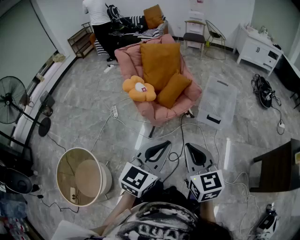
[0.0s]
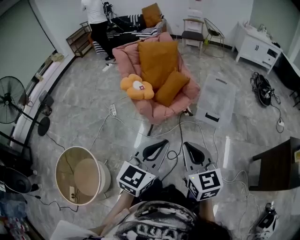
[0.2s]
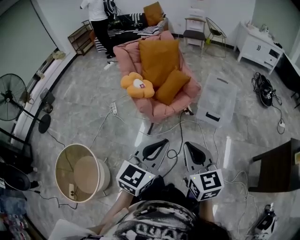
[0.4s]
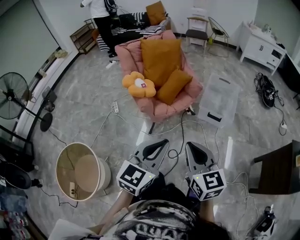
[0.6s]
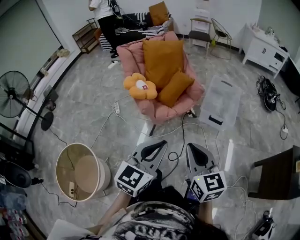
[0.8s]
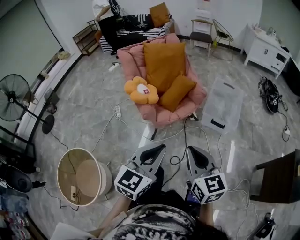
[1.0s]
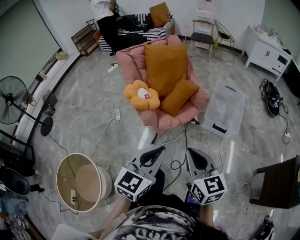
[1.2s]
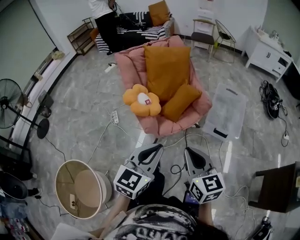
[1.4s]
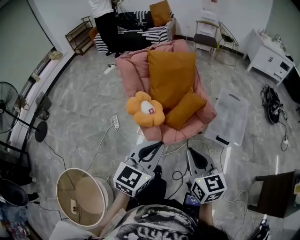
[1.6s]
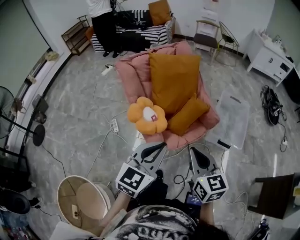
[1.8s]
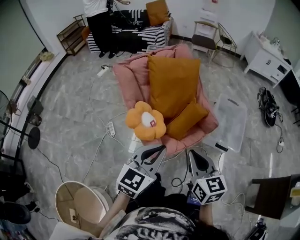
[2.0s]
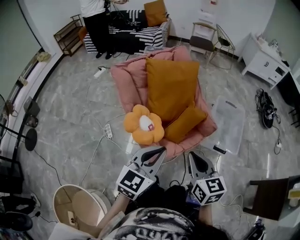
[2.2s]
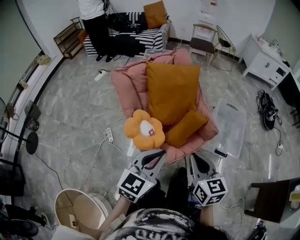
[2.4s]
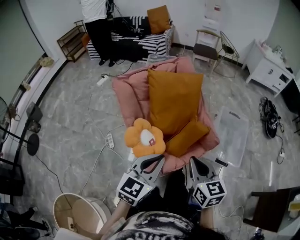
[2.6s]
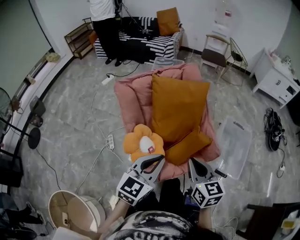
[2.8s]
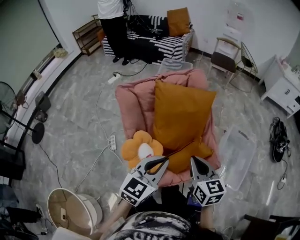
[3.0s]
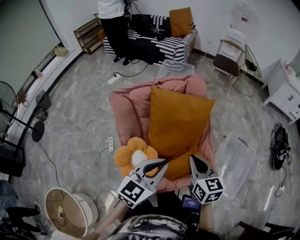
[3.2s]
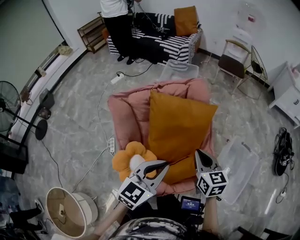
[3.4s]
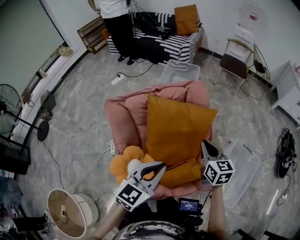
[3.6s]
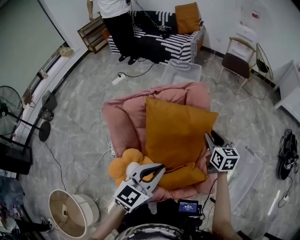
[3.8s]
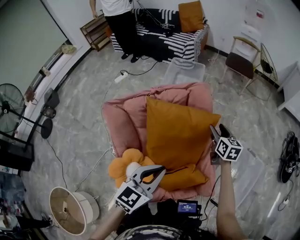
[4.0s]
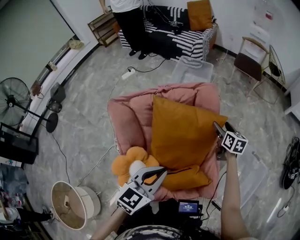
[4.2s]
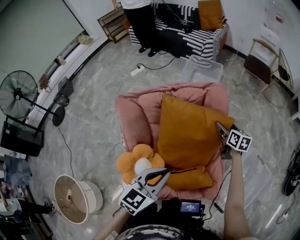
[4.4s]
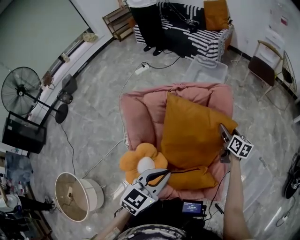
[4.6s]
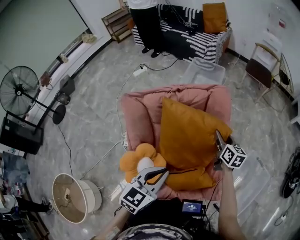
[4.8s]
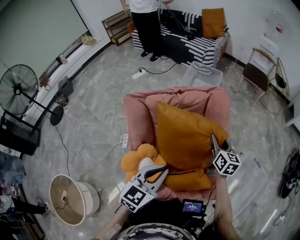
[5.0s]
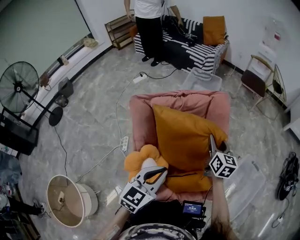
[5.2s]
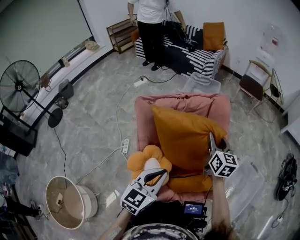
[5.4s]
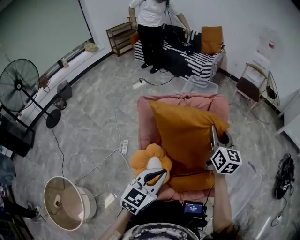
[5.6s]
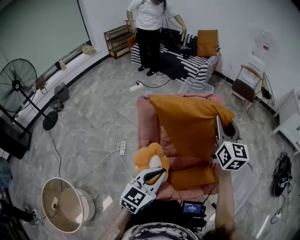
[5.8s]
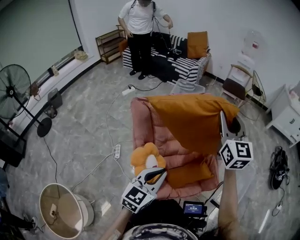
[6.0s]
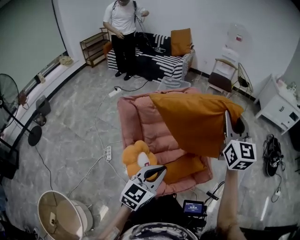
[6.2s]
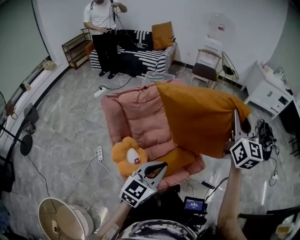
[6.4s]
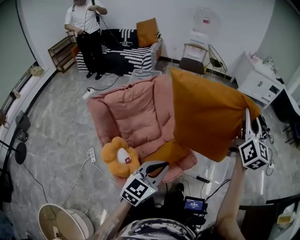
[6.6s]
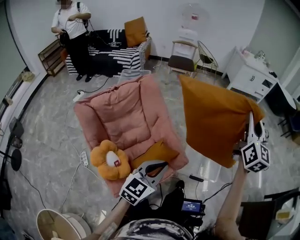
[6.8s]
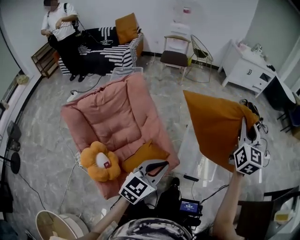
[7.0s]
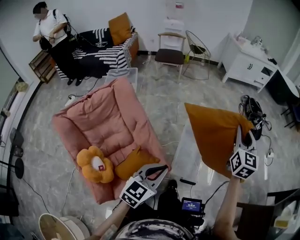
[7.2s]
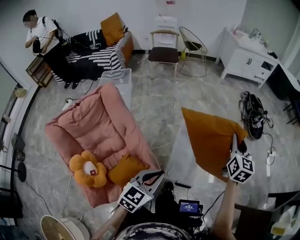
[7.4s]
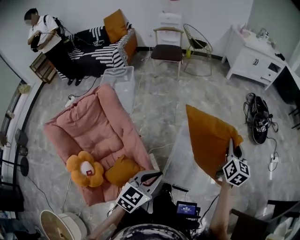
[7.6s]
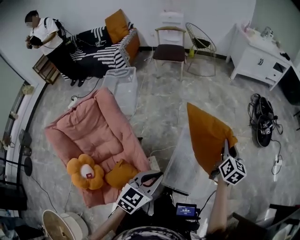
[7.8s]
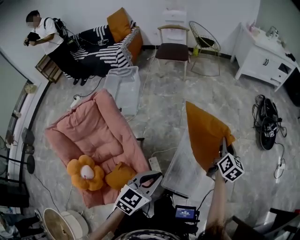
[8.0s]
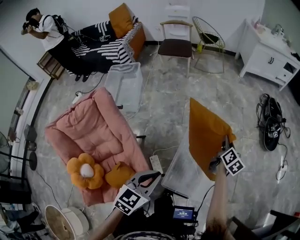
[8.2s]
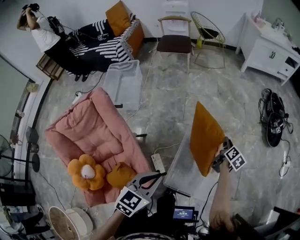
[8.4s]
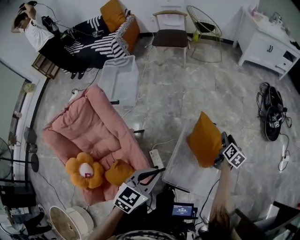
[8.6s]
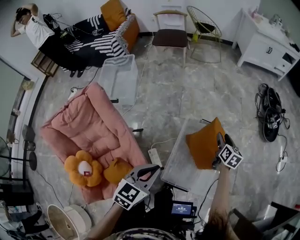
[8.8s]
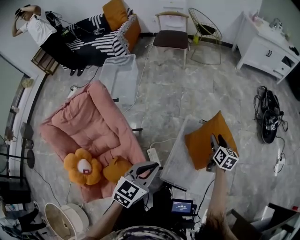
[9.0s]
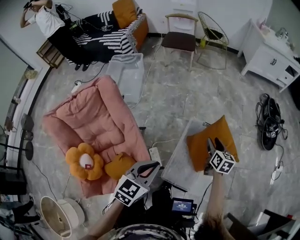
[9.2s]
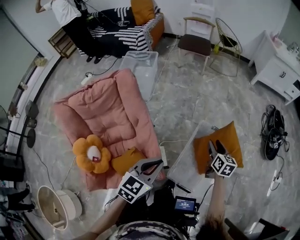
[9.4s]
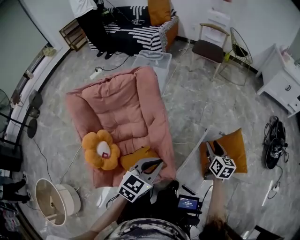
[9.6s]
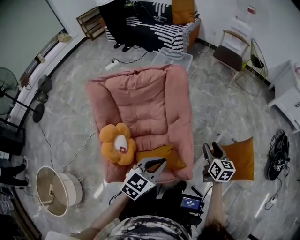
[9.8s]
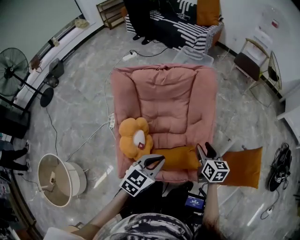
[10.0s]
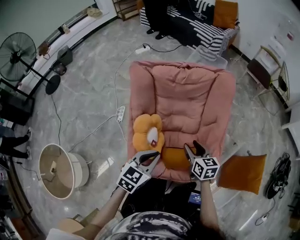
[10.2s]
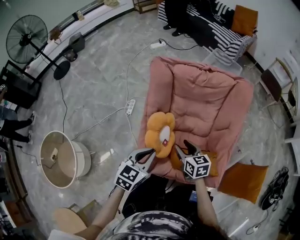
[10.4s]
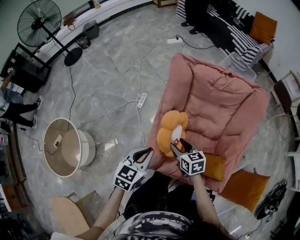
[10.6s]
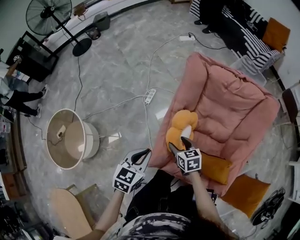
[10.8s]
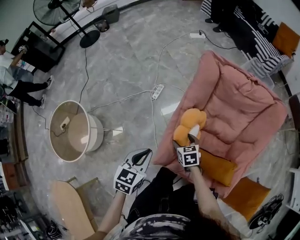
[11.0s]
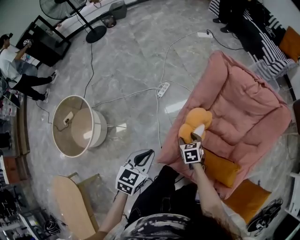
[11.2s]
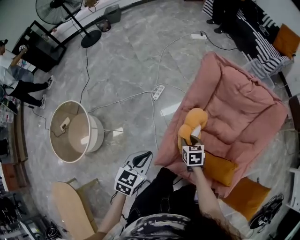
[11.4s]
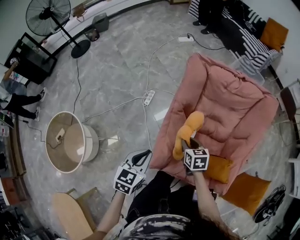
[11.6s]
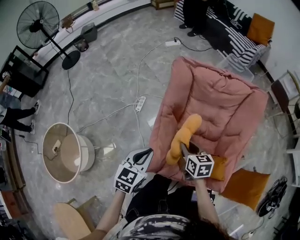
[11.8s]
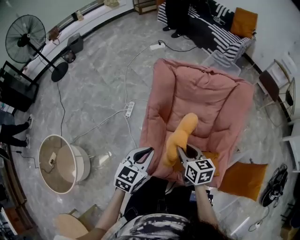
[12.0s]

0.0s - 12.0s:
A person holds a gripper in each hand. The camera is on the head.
0.0s - 1.6s: The left gripper heads forward and to the left, covering roughly 30 cm; the right gripper goes about 25 cm forward.
1.6s - 3.0s: The two grippers go roughly 30 cm forward.
3.0s - 4.4s: The left gripper heads forward, covering some 15 cm. Meanwhile the right gripper heads forward, covering roughly 40 cm, and opens.
4.4s - 6.0s: The right gripper travels upward and backward by approximately 40 cm, tips its fingers upward by about 30 degrees, and closes its fingers, while the left gripper goes about 20 cm backward and to the left.
6.0s - 7.6s: Both grippers are carried about 60 cm. The right gripper swivels approximately 50 degrees. The left gripper turns by roughly 30 degrees.
7.6s - 9.0s: The left gripper is displaced forward by approximately 10 cm. The right gripper travels downward and forward by about 20 cm, rotates roughly 20 degrees, and opens its fingers.
9.0s - 10.4s: Both grippers are carried about 70 cm. The right gripper changes its angle by about 70 degrees. Meanwhile the left gripper rotates about 40 degrees.
10.4s - 12.0s: The right gripper travels downward and back again, approximately 10 cm each way, and opens, then closes again, while the left gripper travels to the left and back again, some 15 cm each way.

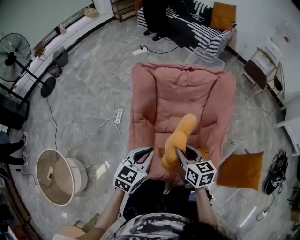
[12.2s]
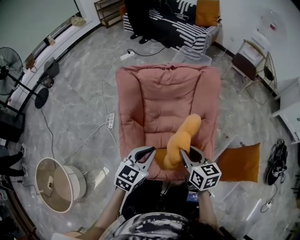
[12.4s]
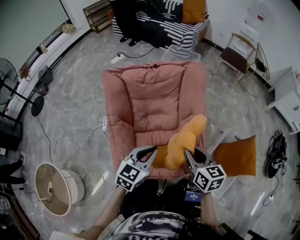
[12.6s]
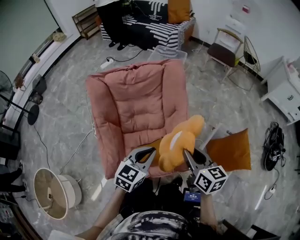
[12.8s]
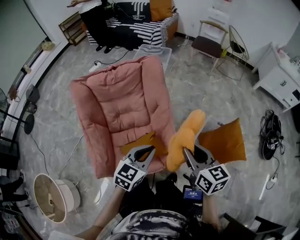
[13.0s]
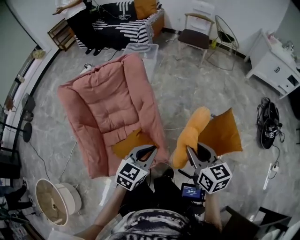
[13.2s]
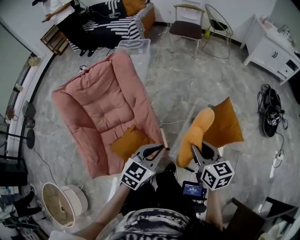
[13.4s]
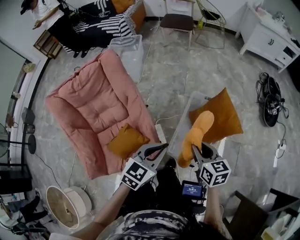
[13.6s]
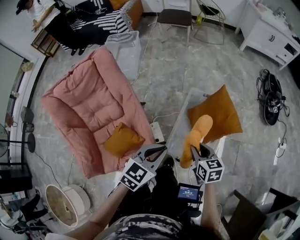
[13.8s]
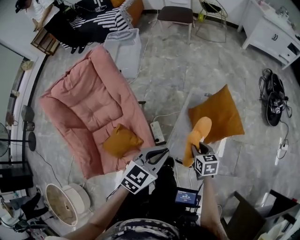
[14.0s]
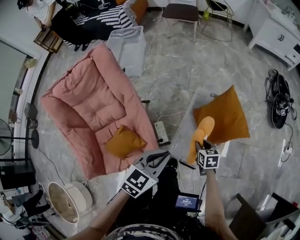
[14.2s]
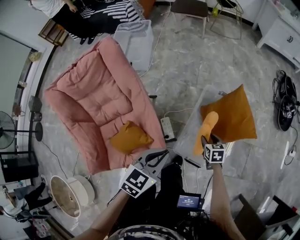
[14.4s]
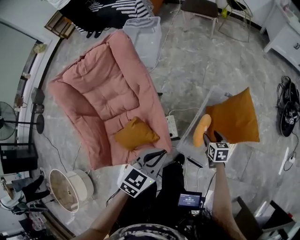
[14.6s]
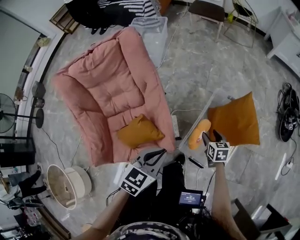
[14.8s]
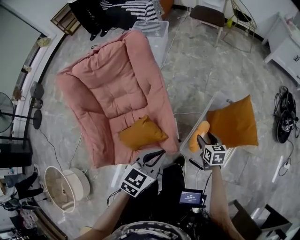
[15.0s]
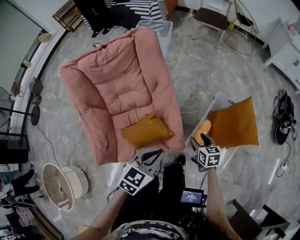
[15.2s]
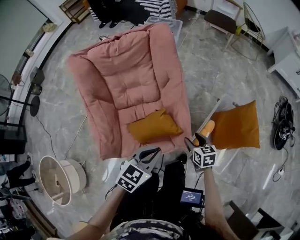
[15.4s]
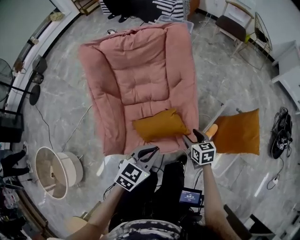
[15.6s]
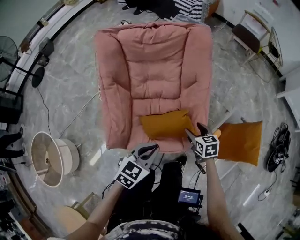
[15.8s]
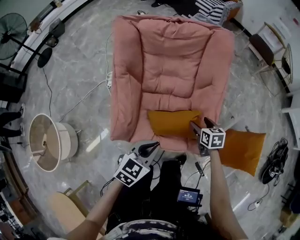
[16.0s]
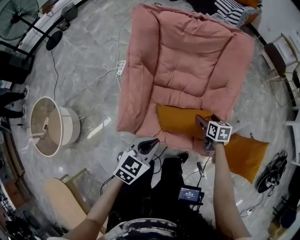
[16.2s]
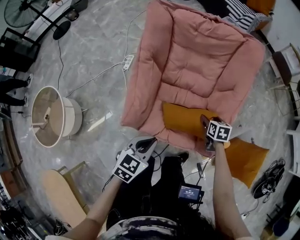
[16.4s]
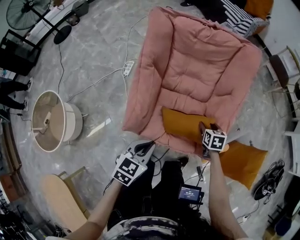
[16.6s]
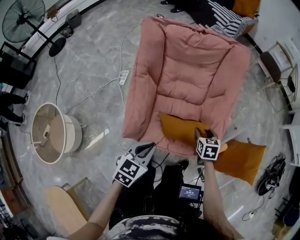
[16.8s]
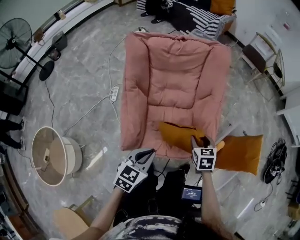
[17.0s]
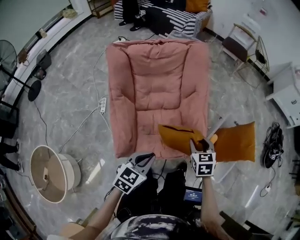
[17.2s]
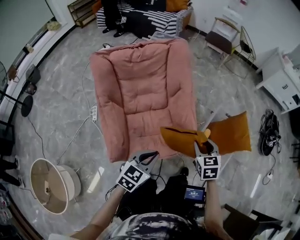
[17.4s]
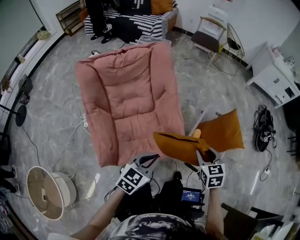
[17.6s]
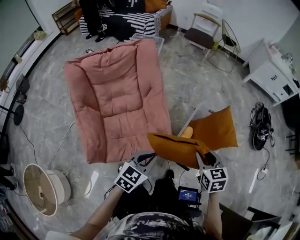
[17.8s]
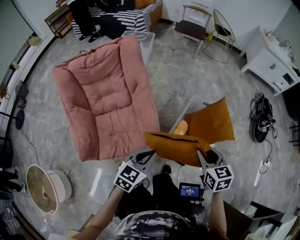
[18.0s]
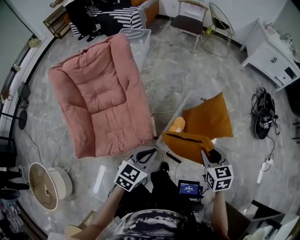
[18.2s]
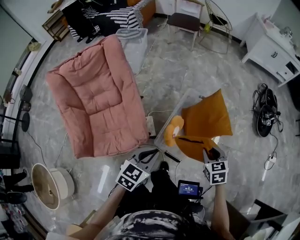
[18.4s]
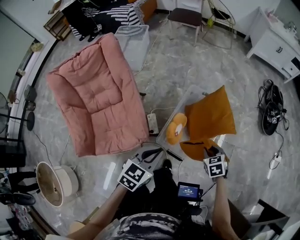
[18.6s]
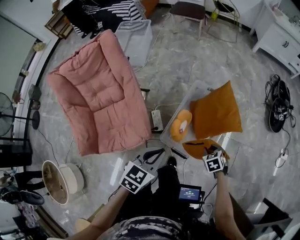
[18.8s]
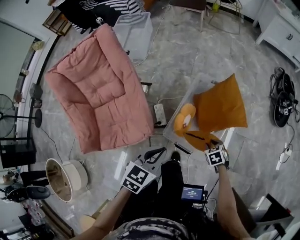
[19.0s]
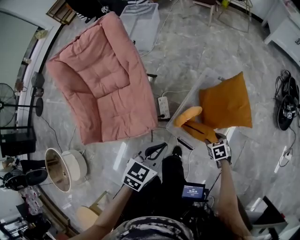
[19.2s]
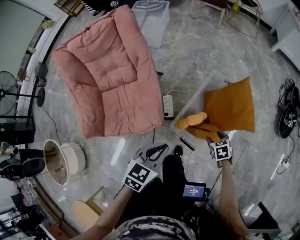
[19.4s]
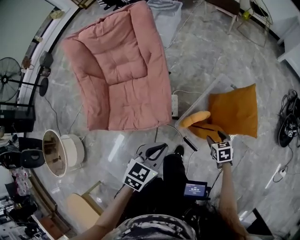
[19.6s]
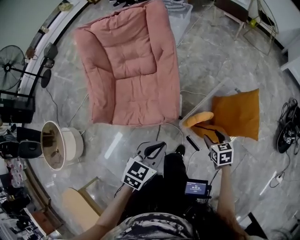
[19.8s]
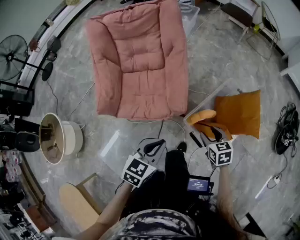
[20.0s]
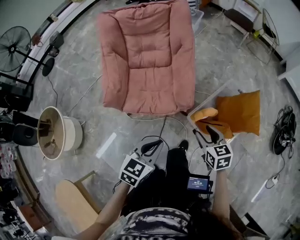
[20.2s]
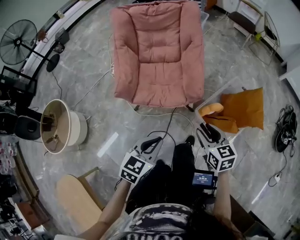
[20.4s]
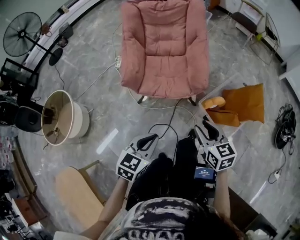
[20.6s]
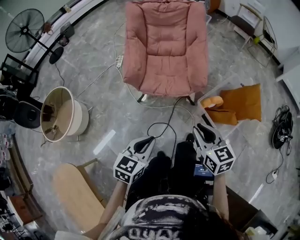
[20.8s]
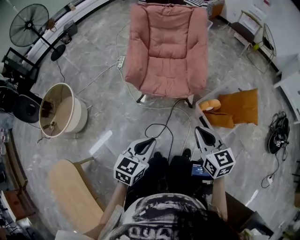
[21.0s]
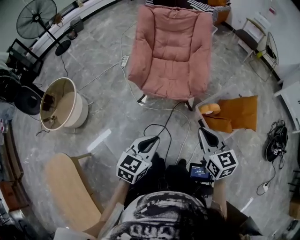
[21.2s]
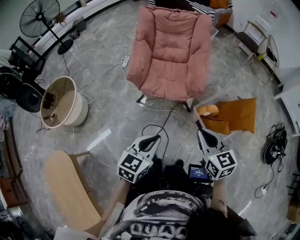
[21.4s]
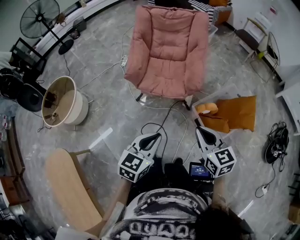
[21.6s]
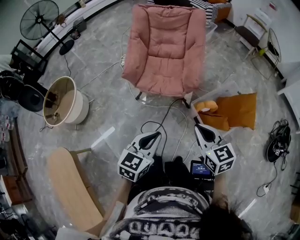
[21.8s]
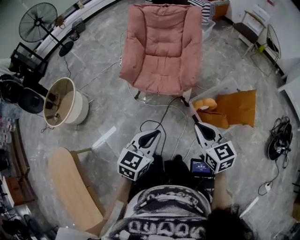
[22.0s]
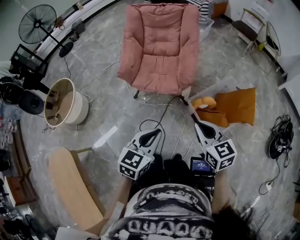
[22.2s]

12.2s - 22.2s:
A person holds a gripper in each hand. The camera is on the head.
12.2s - 13.6s: The two grippers travel together, about 50 cm. The right gripper turns by some 30 degrees. Meanwhile the left gripper turns by approximately 40 degrees.
13.6s - 15.0s: The left gripper goes roughly 10 cm to the left; the right gripper goes some 20 cm downward, and opens.
15.0s - 16.4s: The left gripper changes place by approximately 30 cm, and changes its angle by some 30 degrees. The right gripper moves about 30 cm, and swivels some 30 degrees.
16.4s - 18.0s: The right gripper moves some 50 cm, rotates about 30 degrees, and closes up. Meanwhile the left gripper moves some 30 cm, and turns by roughly 30 degrees.
18.0s - 19.4s: The right gripper shifts about 30 cm downward and to the right, turns by approximately 30 degrees, and opens up. The left gripper travels to the right and downward by some 10 cm.
19.4s - 20.8s: The two grippers travel together, to the left and backward, roughly 40 cm. The right gripper goes approximately 30 cm upward, points its fingers approximately 40 degrees further upward, and closes. Meanwhile the left gripper swivels roughly 30 degrees.
20.8s - 22.2s: Both grippers travel together to the right, roughly 15 cm.

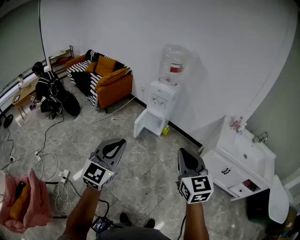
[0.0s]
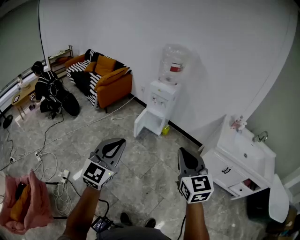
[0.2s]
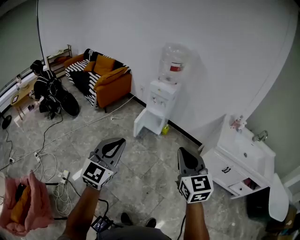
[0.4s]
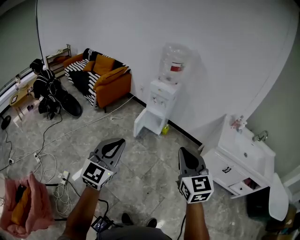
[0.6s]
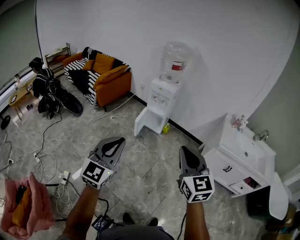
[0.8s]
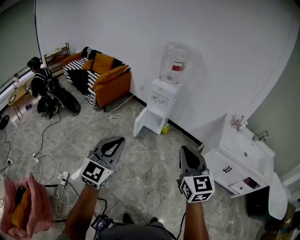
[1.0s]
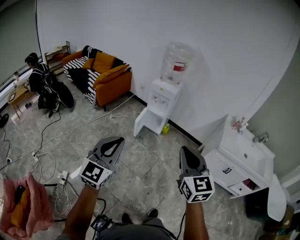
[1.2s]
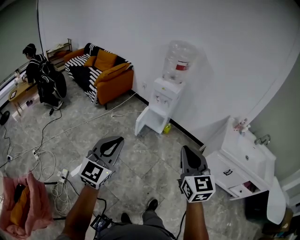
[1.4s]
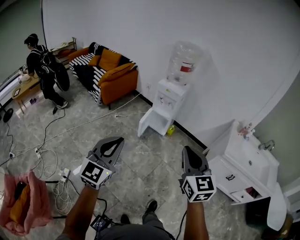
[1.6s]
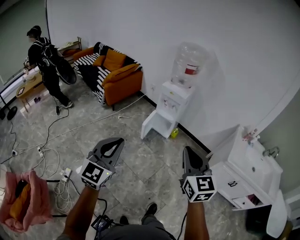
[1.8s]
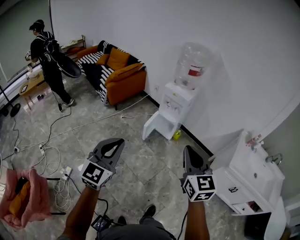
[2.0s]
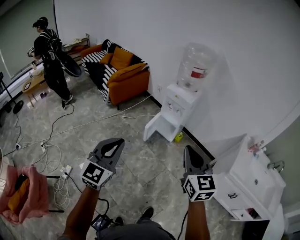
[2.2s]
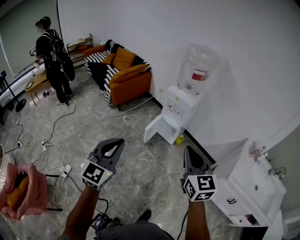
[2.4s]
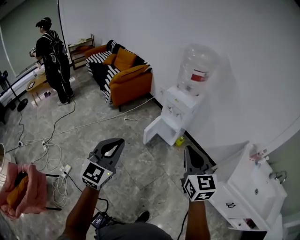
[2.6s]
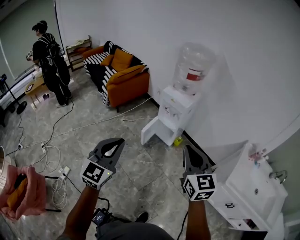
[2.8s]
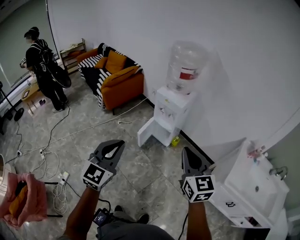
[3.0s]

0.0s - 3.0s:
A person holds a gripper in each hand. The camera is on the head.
0.0s - 1.6s: The left gripper is displaced forward and to the left by approximately 10 cm. The right gripper moves forward, about 10 cm.
1.6s - 3.0s: Both grippers move forward and to the right, approximately 25 cm.
